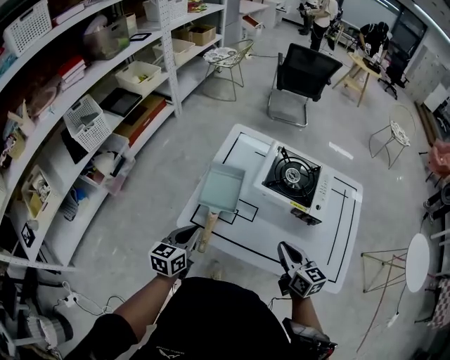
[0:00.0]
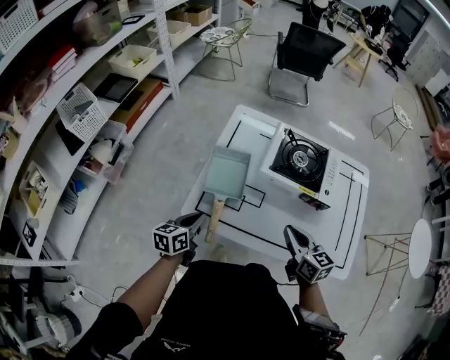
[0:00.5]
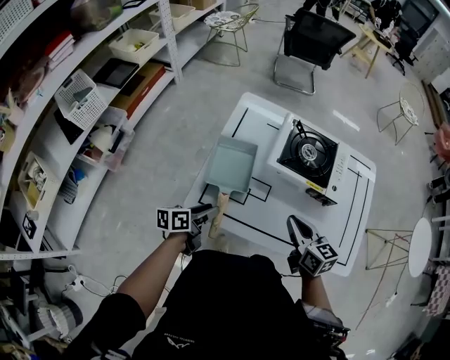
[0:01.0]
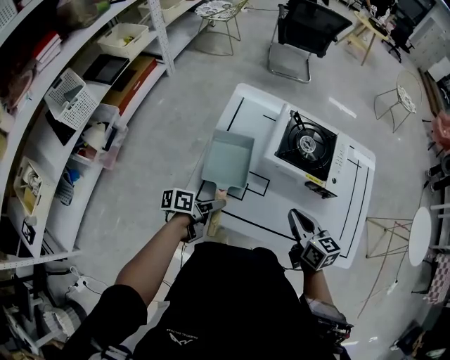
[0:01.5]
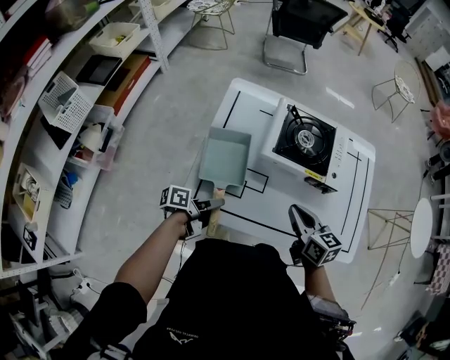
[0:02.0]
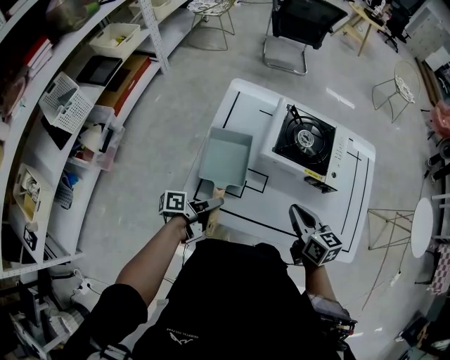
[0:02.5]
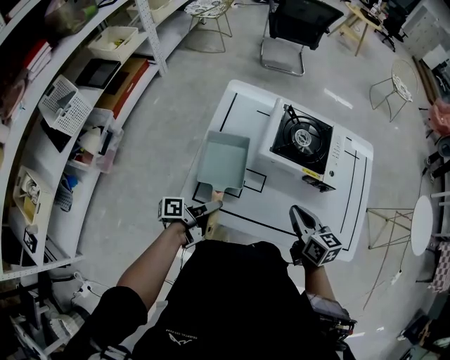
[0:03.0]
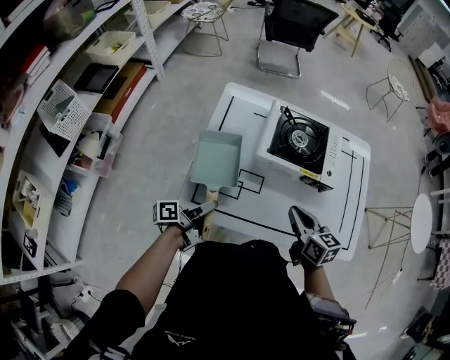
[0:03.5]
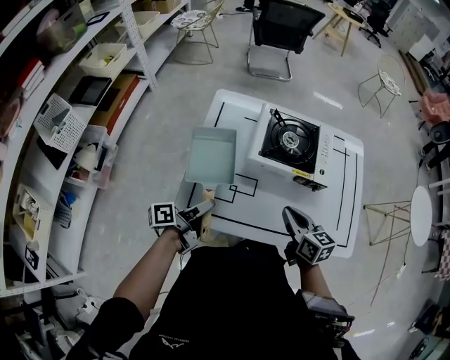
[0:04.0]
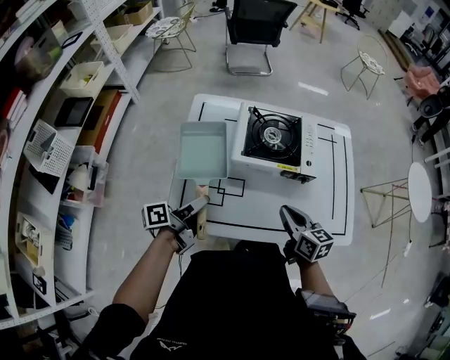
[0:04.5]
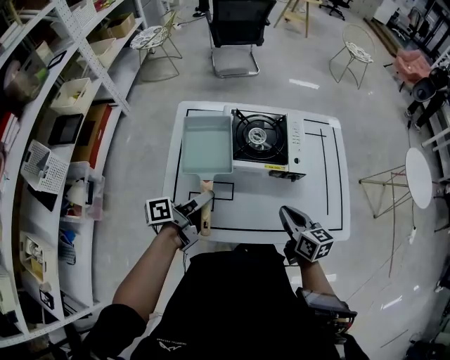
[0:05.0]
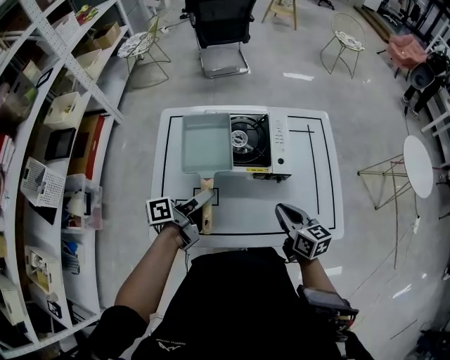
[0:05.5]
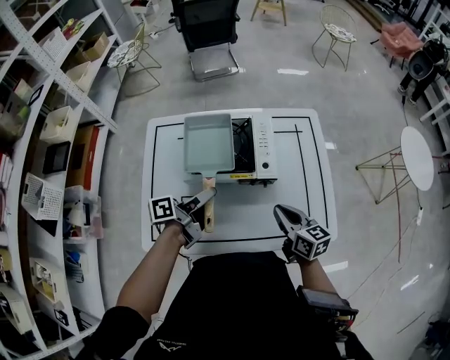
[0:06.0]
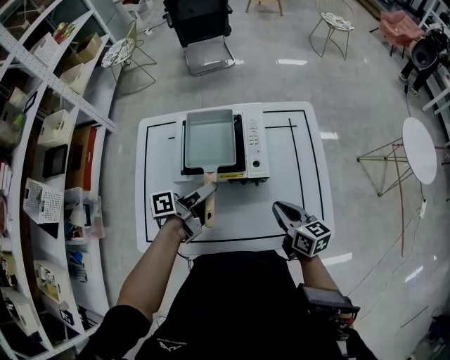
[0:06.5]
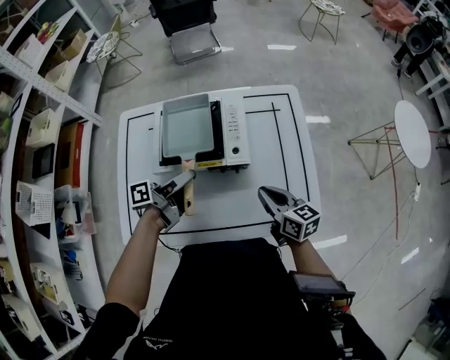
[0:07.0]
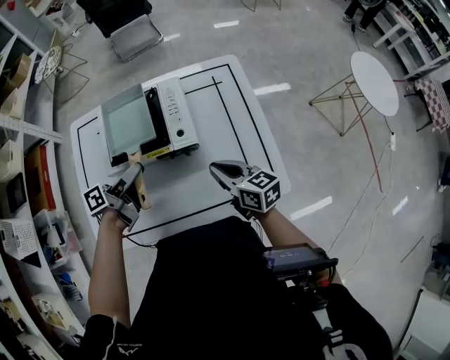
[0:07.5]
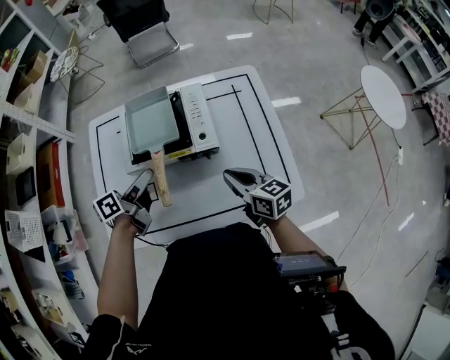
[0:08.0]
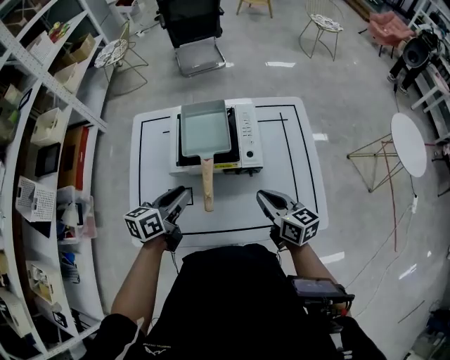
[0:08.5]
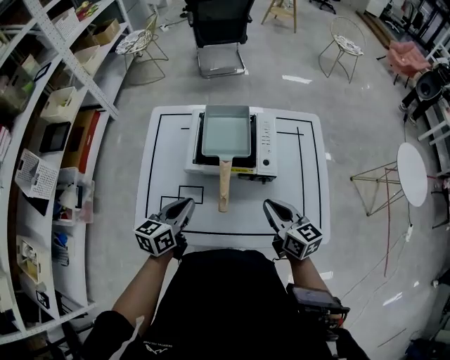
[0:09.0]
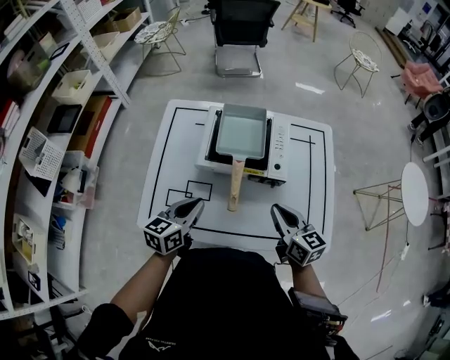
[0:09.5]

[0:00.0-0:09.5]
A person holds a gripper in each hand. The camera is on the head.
0:00.0 to 0:02.0: The left gripper is displaced downward and forward by approximately 10 cm, twists roughly 50 degrees counterclockwise, seen from behind, and opens up. Meanwhile the right gripper moves approximately 5 cm.
0:02.0 to 0:04.0: The left gripper is displaced upward by some 10 cm.
0:04.0 to 0:05.5: The left gripper travels to the right, forward and upward by some 20 cm, while the right gripper goes approximately 10 cm to the right.
0:05.5 to 0:07.5: The left gripper goes some 10 cm to the right and forward, and opens up. Meanwhile the right gripper is displaced to the right by approximately 5 cm.
0:07.5 to 0:09.5: The right gripper heads to the left, covering some 5 cm, while the left gripper moves backward and to the left, some 15 cm, rolls clockwise, seen from behind, by some 50 degrees, and closes its fingers.

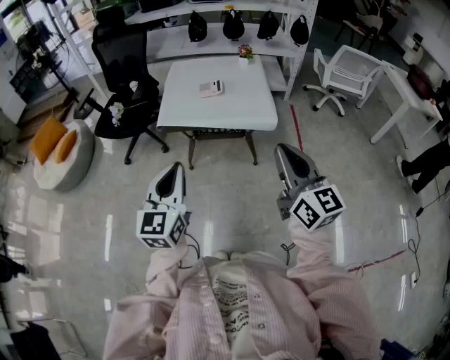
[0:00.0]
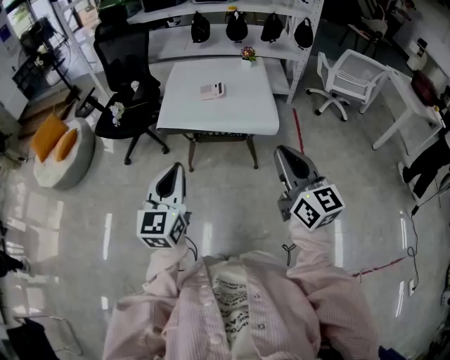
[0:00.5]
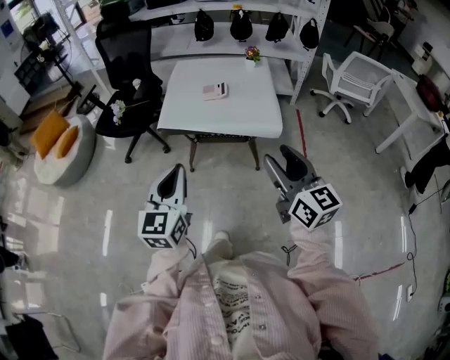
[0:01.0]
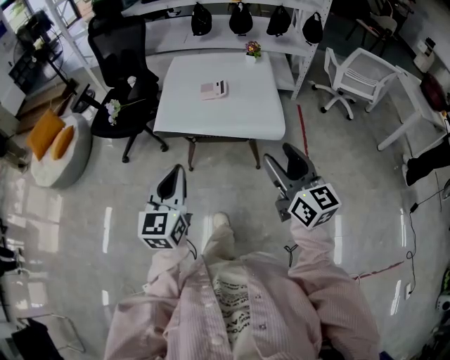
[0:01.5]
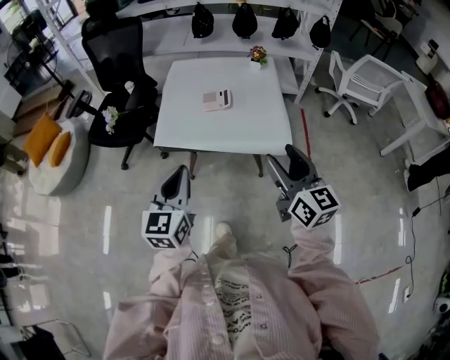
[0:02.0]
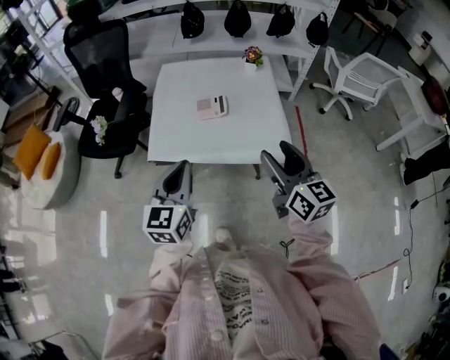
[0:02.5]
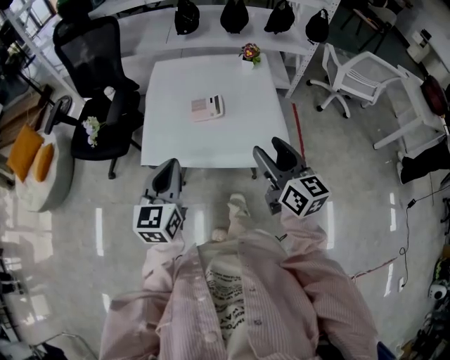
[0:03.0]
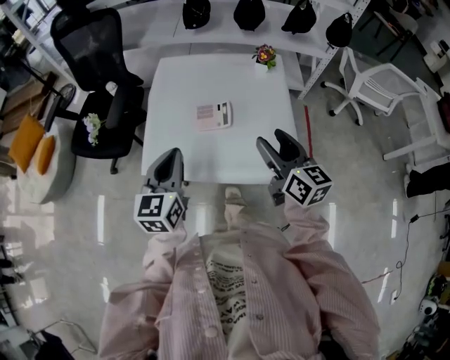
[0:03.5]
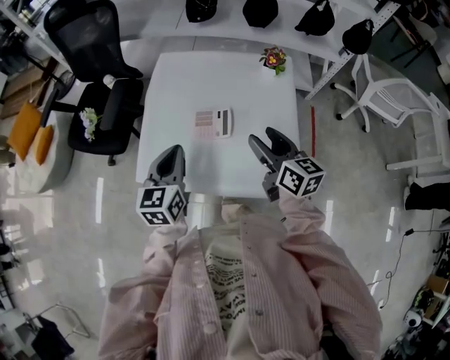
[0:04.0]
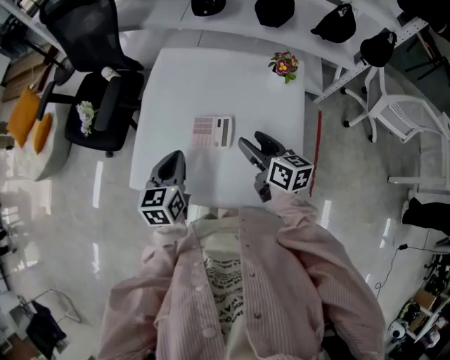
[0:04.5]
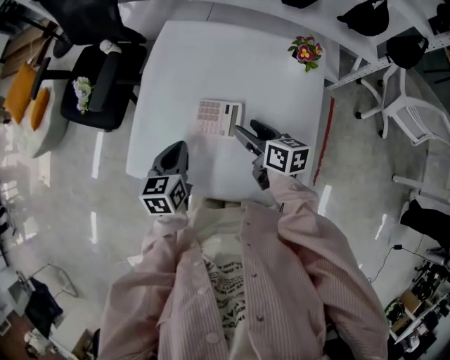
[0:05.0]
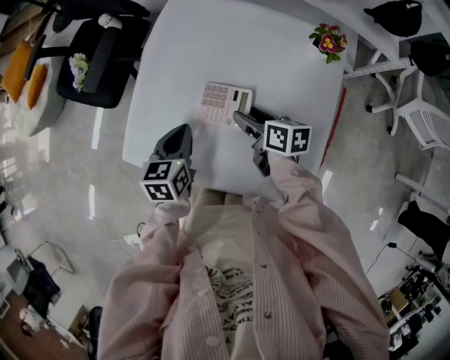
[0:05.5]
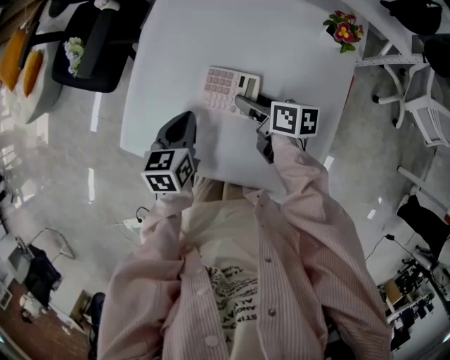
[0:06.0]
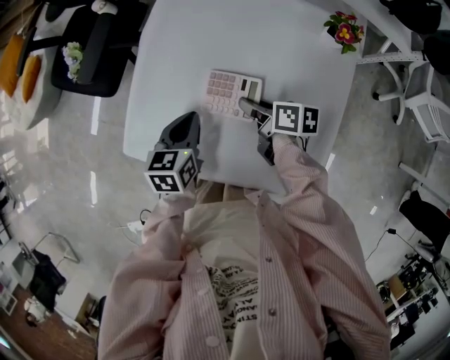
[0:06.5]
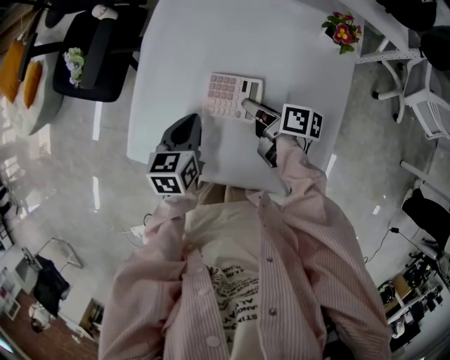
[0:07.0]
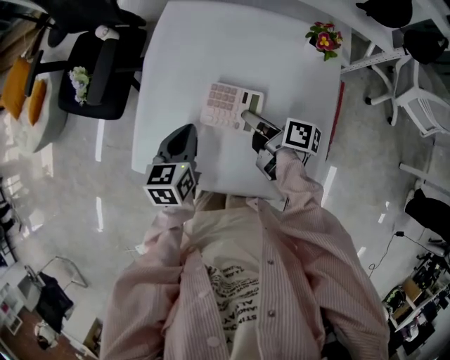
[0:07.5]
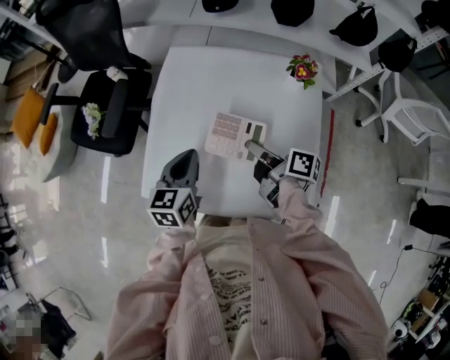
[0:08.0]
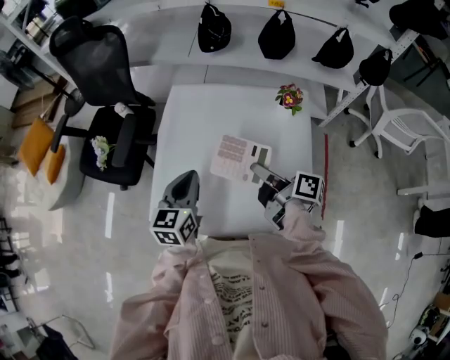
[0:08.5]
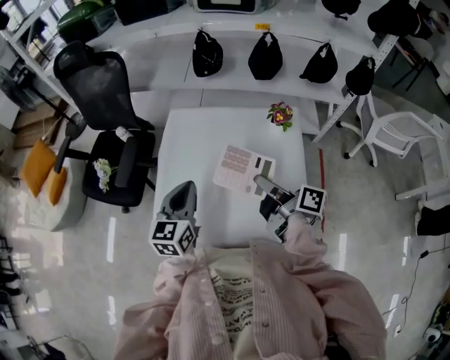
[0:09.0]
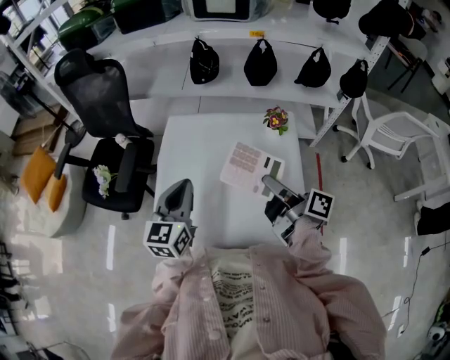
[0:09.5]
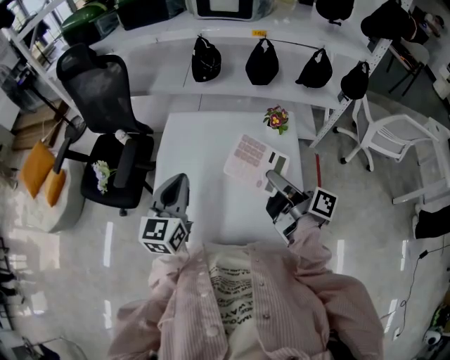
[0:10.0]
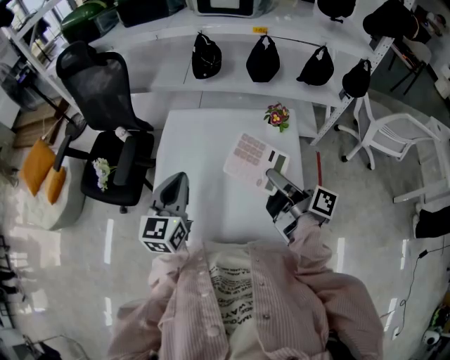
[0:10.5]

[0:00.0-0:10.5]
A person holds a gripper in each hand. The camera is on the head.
0:00.0 to 0:02.0: Both grippers move forward, about 20 cm. The right gripper opens.
0:02.0 to 0:04.0: The grippers both shift forward by approximately 35 cm. The right gripper rotates about 20 degrees.
0:04.0 to 0:06.5: The left gripper goes about 20 cm downward, and turns by about 20 degrees, while the right gripper is displaced downward and forward by approximately 25 cm, rotates about 50 degrees, and closes its fingers.
0:06.5 to 0:08.5: The two grippers go approximately 15 cm upward. The left gripper turns by approximately 20 degrees. The right gripper swivels roughly 40 degrees.
0:08.5 to 0:10.5: The right gripper travels upward and to the right by about 10 cm. The left gripper goes roughly 10 cm upward.

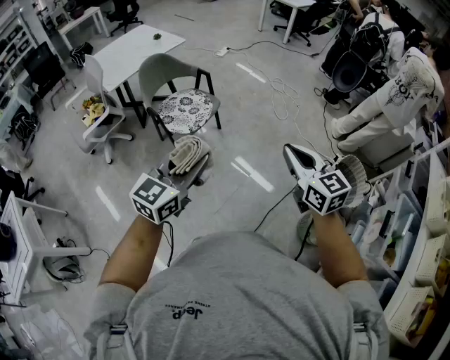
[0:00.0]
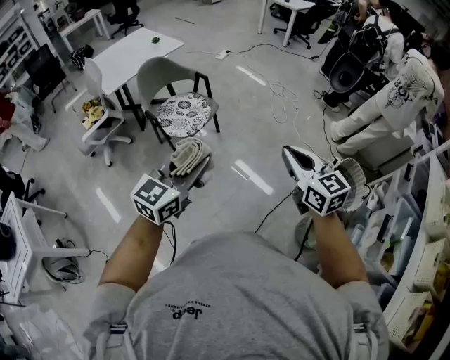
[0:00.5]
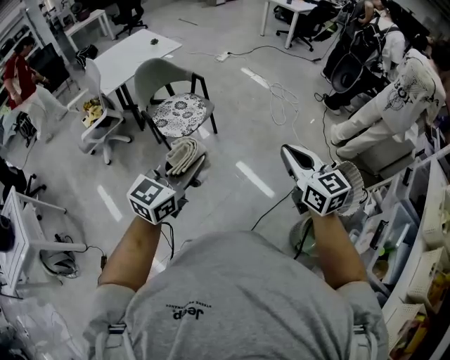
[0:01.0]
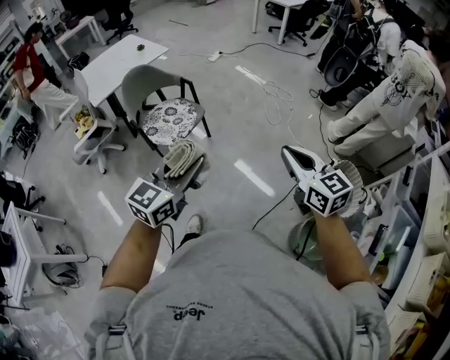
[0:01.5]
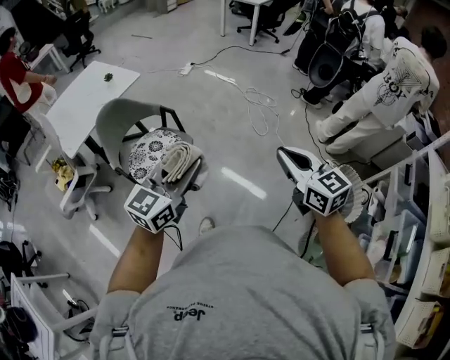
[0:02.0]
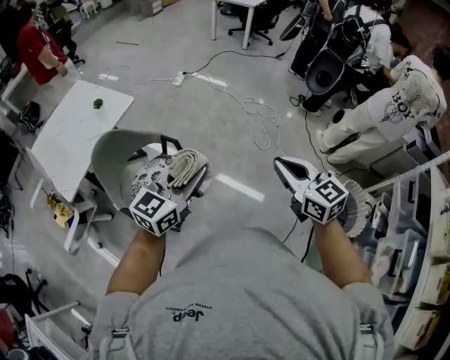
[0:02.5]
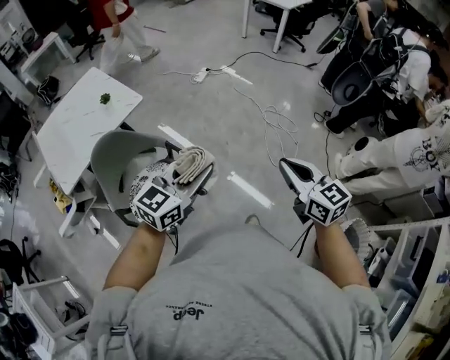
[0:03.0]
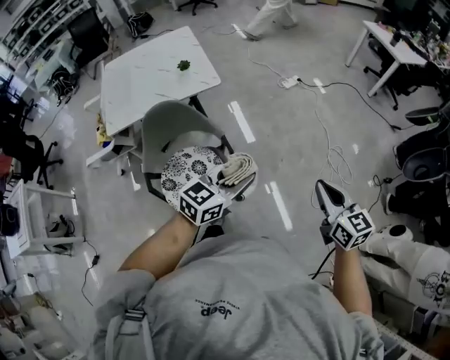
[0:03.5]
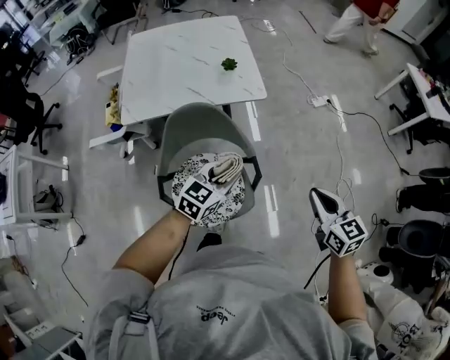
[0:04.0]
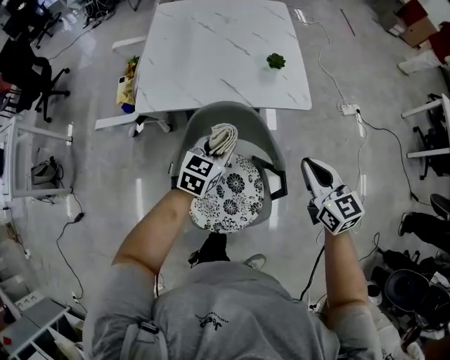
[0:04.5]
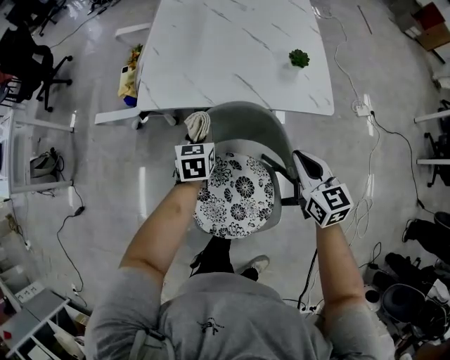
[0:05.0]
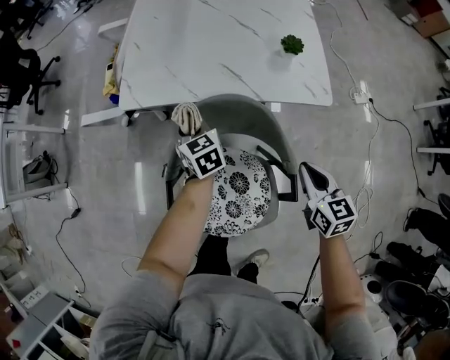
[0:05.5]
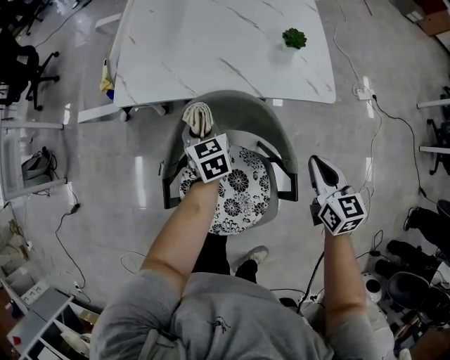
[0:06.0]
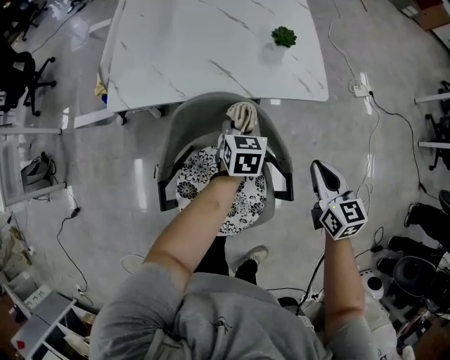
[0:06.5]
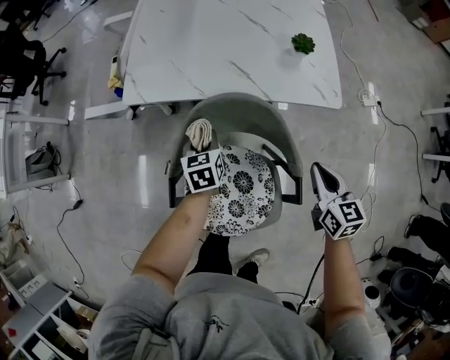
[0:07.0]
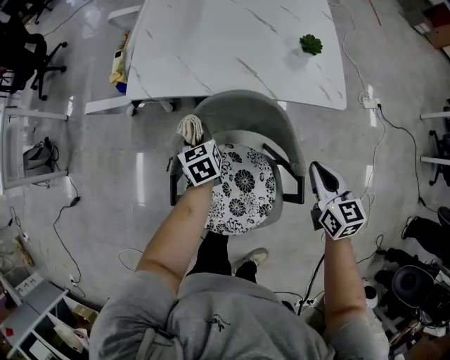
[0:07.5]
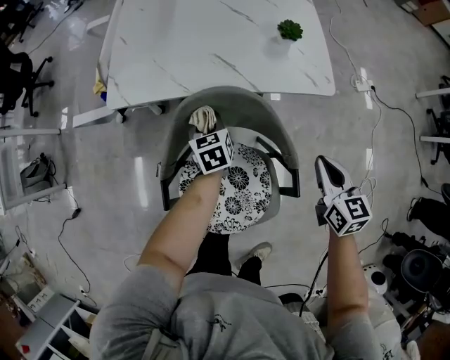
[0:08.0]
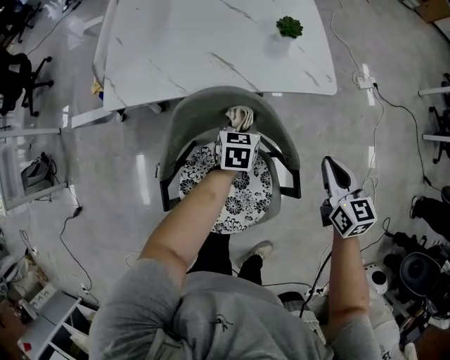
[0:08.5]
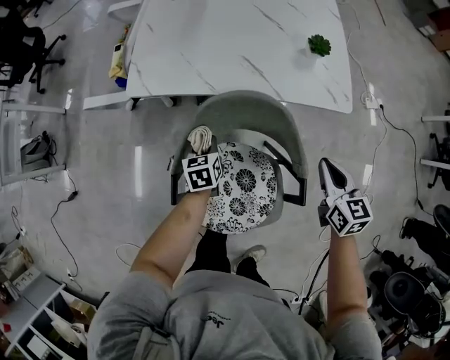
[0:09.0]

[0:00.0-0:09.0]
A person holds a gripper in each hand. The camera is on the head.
0:00.0 to 0:02.0: The two grippers go some 25 cm forward.
0:02.0 to 0:04.5: Both grippers are carried some 70 cm. The right gripper turns by some 50 degrees. Meanwhile the left gripper swivels roughly 60 degrees.
0:04.5 to 0:07.0: Both grippers move downward, roughly 15 cm. The left gripper turns by some 40 degrees.
0:07.0 to 0:09.0: The left gripper goes left and right, roughly 20 cm each way, reversing 2 times.
